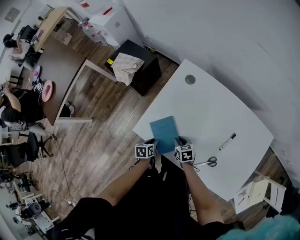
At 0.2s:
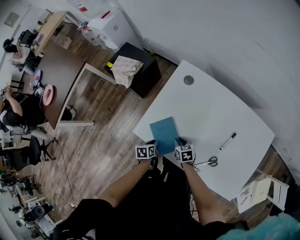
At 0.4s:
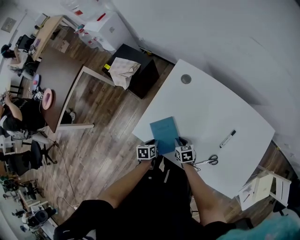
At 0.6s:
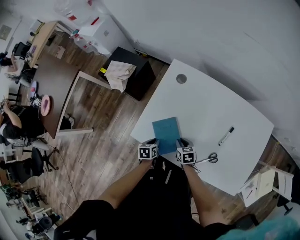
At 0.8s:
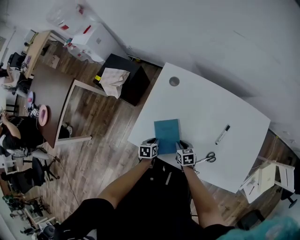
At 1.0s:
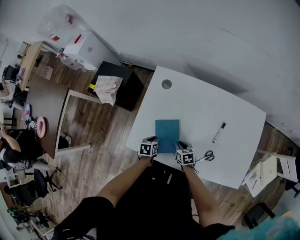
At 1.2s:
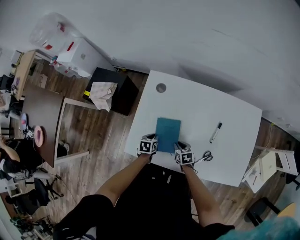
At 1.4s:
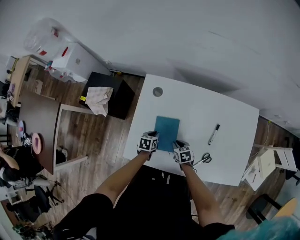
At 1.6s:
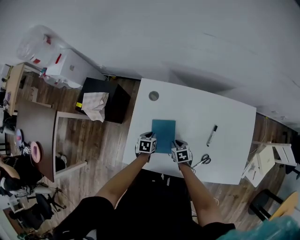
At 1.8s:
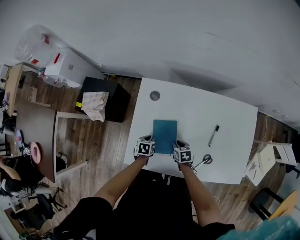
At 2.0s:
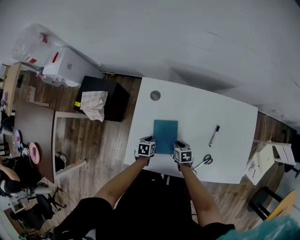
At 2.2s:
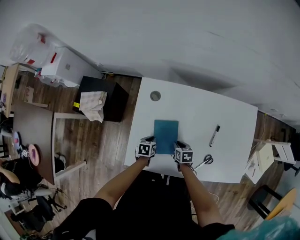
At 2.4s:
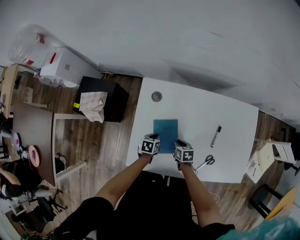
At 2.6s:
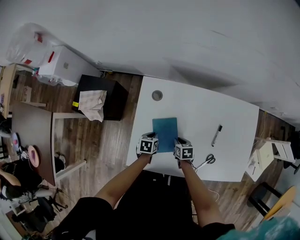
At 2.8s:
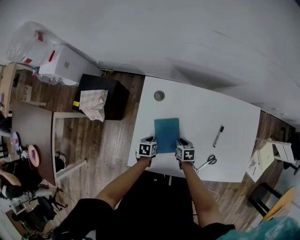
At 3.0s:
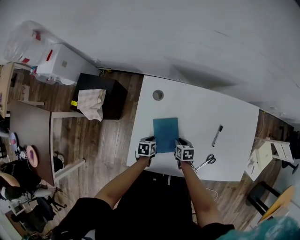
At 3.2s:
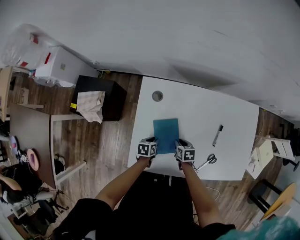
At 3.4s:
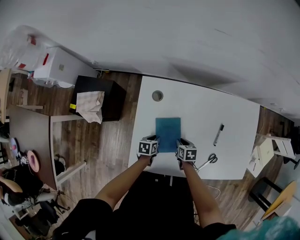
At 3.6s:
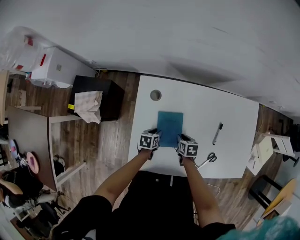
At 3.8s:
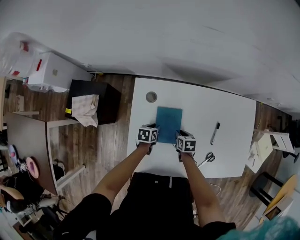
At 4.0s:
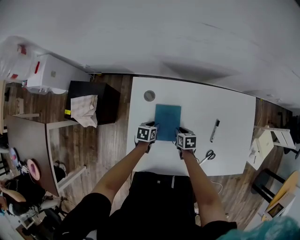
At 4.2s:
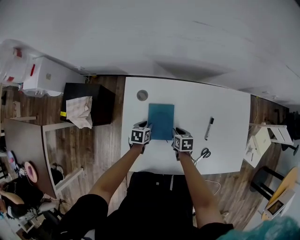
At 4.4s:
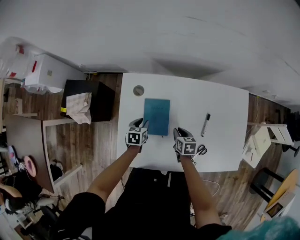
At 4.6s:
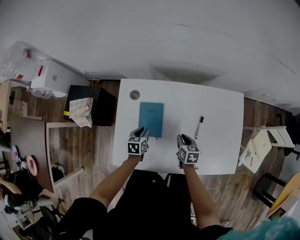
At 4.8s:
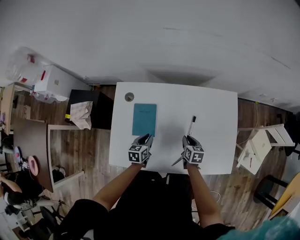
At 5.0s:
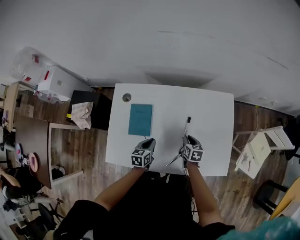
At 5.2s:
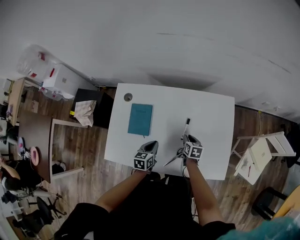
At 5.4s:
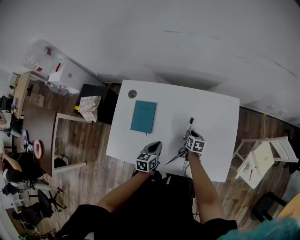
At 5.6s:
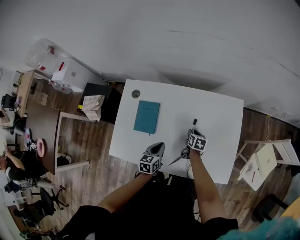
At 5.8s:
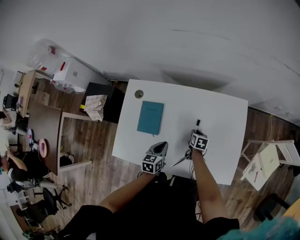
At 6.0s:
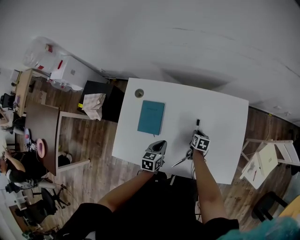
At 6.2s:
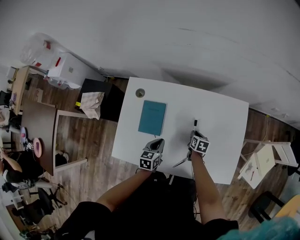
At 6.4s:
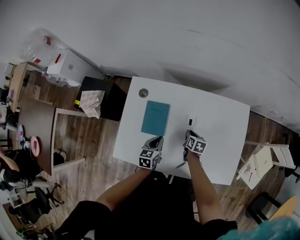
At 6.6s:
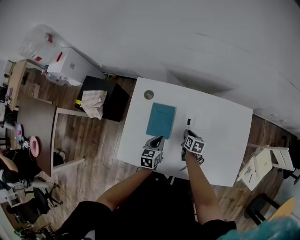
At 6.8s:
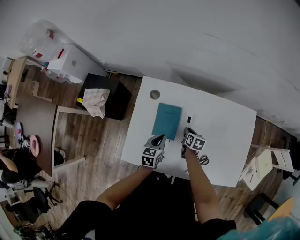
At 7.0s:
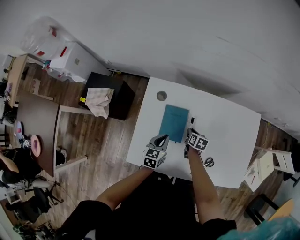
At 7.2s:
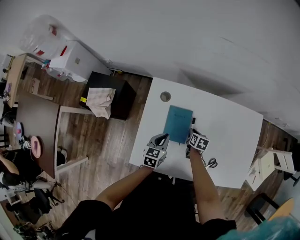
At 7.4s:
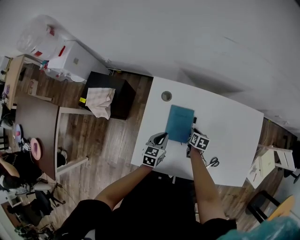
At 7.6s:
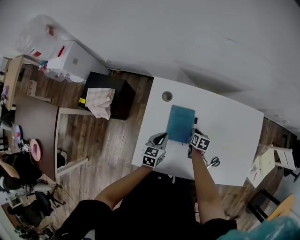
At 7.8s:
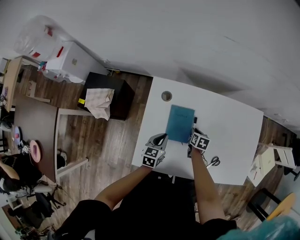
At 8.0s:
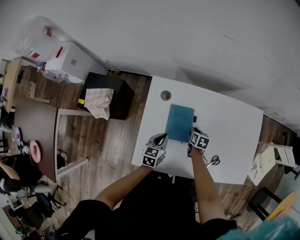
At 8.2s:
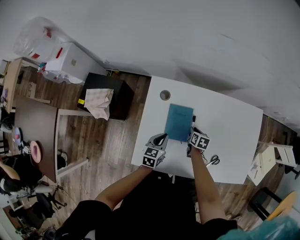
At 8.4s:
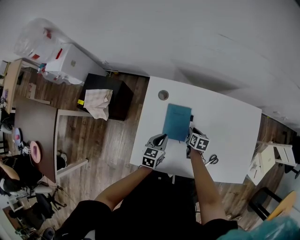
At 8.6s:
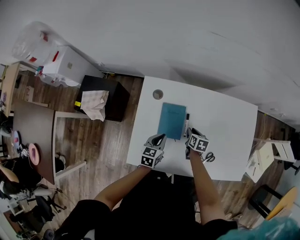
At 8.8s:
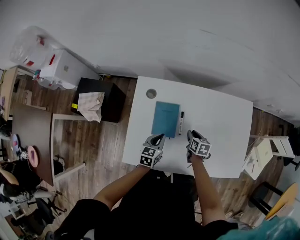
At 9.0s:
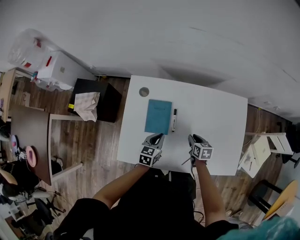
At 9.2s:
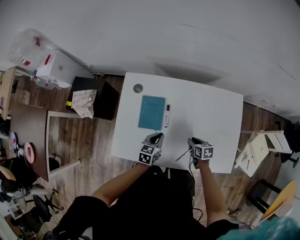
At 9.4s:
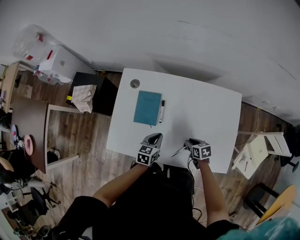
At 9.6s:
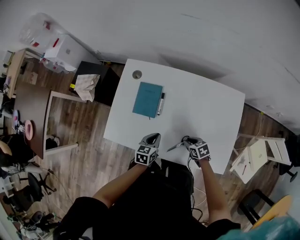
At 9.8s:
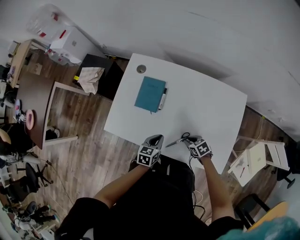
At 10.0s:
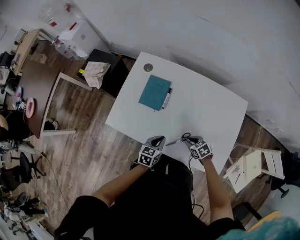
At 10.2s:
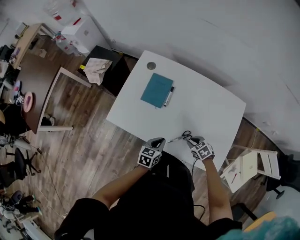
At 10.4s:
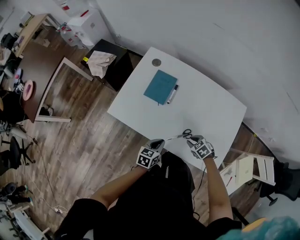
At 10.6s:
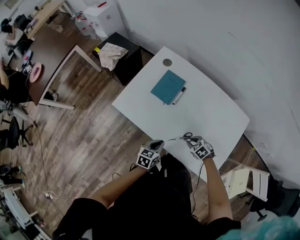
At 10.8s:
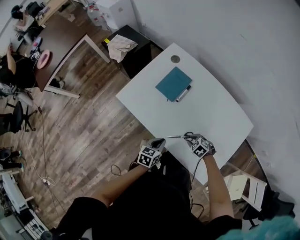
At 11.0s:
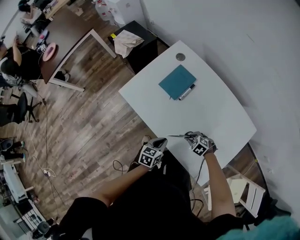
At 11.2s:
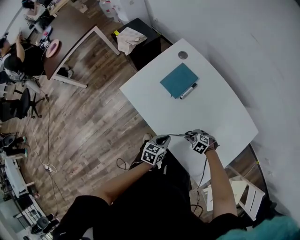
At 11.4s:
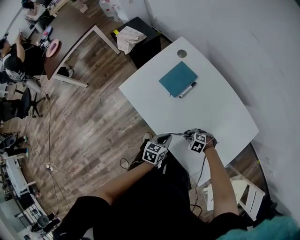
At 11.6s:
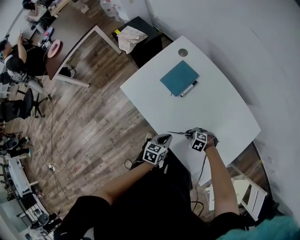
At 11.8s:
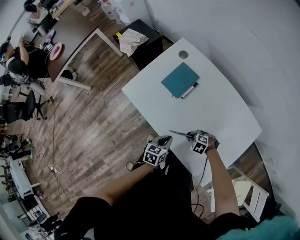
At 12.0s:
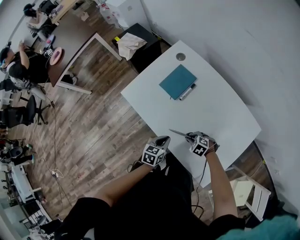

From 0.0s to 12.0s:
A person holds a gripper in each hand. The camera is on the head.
From 0.0s to 1.6s: The left gripper moves forward and to the right, roughly 20 cm, and turns by approximately 30 degrees; the right gripper travels to the right and forward by approximately 10 cm, and changes its angle by about 20 degrees.
From 1.6s to 3.0s: There are only small adjustments of the grippers.
From 3.0s to 4.4s: The right gripper moves to the right, some 5 cm. Meanwhile the left gripper travels forward by some 10 cm.
From 4.4s to 6.0s: The right gripper travels to the right by approximately 20 cm. Meanwhile the left gripper heads to the right, backward and upward, covering some 25 cm, and closes up.
From 6.0s to 7.6s: Both grippers move to the left, approximately 20 cm.
From 7.6s to 9.0s: The left gripper is displaced to the right by some 10 cm. The right gripper travels to the right, backward and upward by approximately 15 cm.
From 9.0s to 10.4s: The left gripper ends up approximately 25 cm from where it was; the right gripper moves about 15 cm, and rolls counterclockwise, seen from behind, by roughly 60 degrees.
From 10.4s to 12.0s: The right gripper rotates approximately 40 degrees.

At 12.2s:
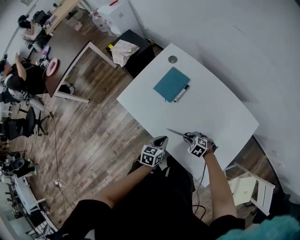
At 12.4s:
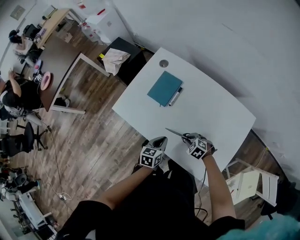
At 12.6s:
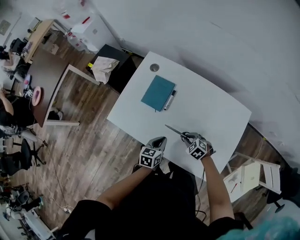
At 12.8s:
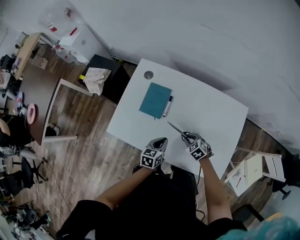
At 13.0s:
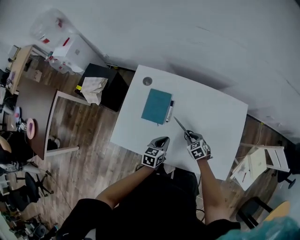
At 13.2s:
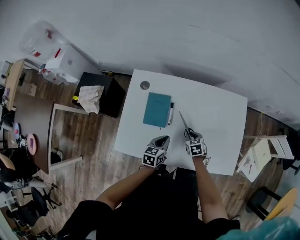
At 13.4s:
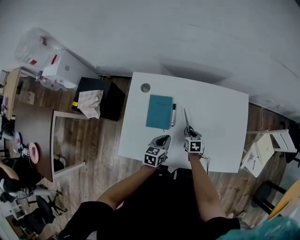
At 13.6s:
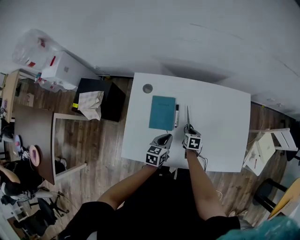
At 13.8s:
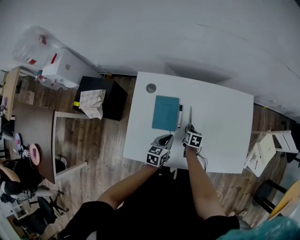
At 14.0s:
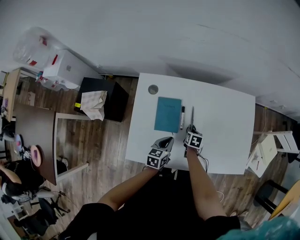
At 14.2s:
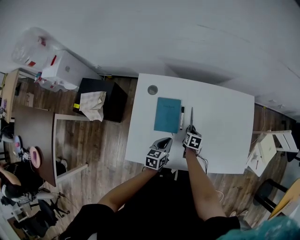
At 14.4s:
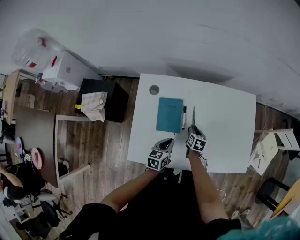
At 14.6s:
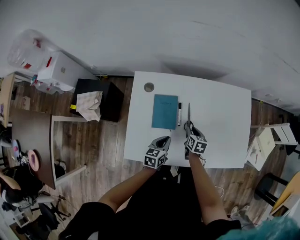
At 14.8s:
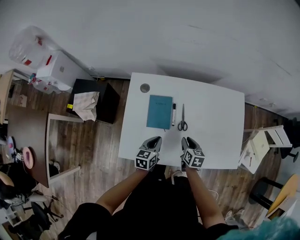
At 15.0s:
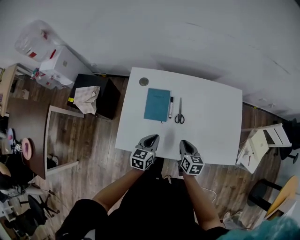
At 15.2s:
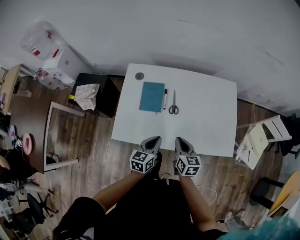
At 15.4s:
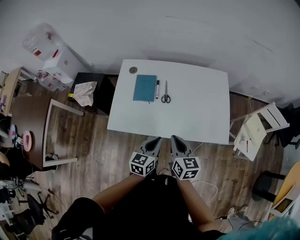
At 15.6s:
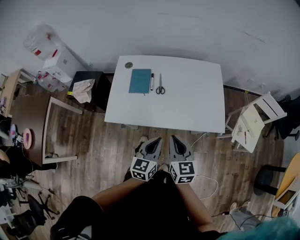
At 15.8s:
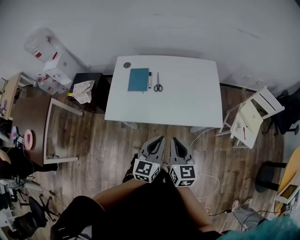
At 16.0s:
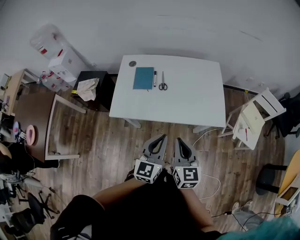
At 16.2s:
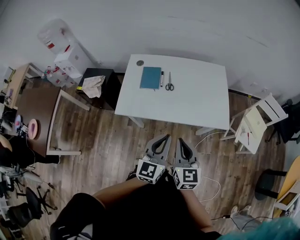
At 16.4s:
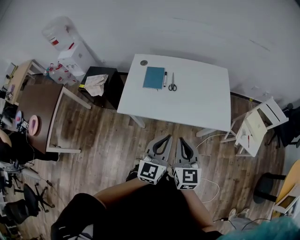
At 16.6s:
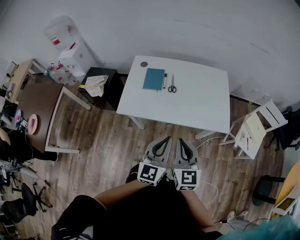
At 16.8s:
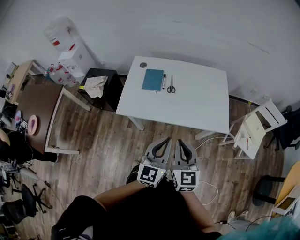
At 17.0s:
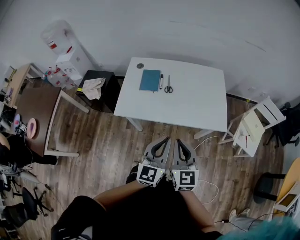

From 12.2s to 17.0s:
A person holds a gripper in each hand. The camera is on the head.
From 12.2s to 13.8s: The left gripper shifts by approximately 20 cm, and changes its angle by roughly 30 degrees. Meanwhile the right gripper shifts by approximately 20 cm, and twists roughly 100 degrees clockwise, seen from behind.
From 13.8s to 15.4s: The right gripper heads upward and backward, covering some 40 cm, and points its fingers roughly 40 degrees further upward; the left gripper goes roughly 30 cm backward, to the right and upward.
From 15.4s to 17.0s: The grippers both shift backward and upward by approximately 20 cm. The right gripper rotates approximately 20 degrees, while the left gripper swivels approximately 30 degrees.

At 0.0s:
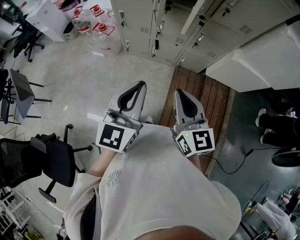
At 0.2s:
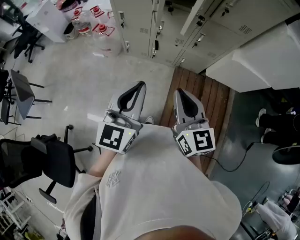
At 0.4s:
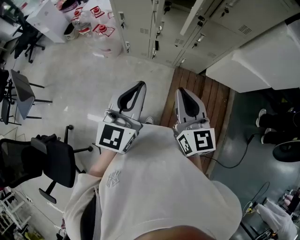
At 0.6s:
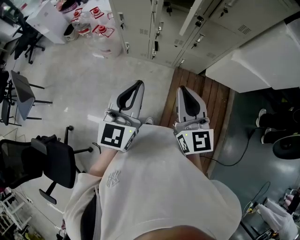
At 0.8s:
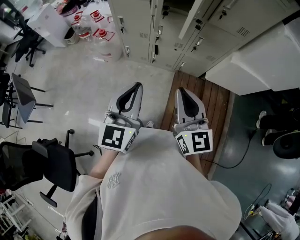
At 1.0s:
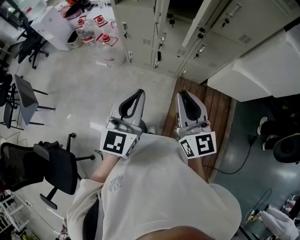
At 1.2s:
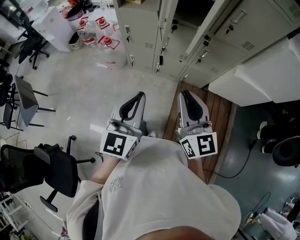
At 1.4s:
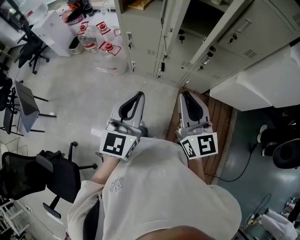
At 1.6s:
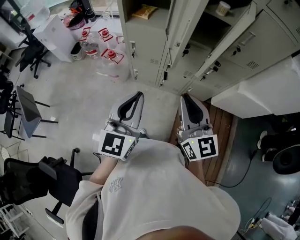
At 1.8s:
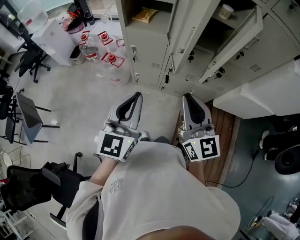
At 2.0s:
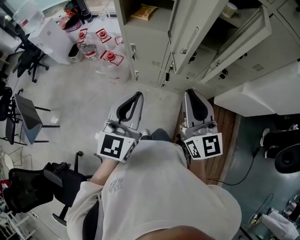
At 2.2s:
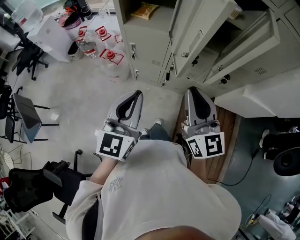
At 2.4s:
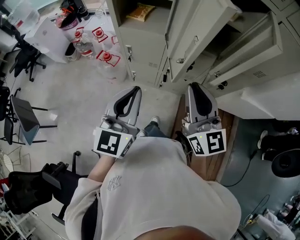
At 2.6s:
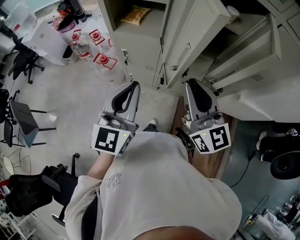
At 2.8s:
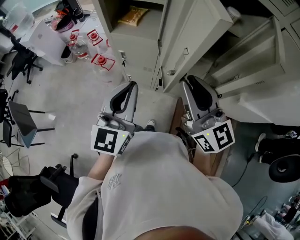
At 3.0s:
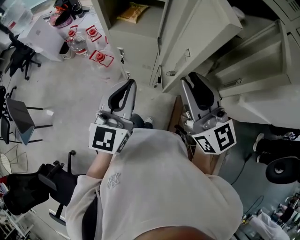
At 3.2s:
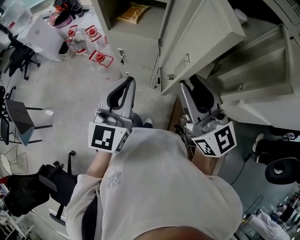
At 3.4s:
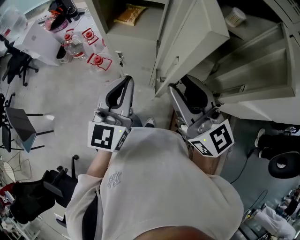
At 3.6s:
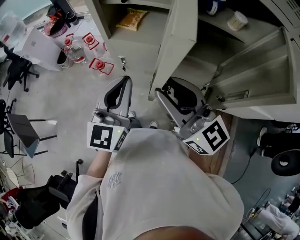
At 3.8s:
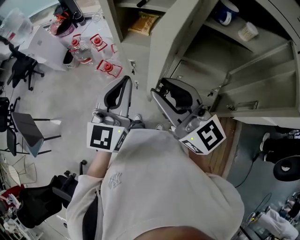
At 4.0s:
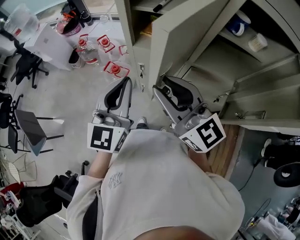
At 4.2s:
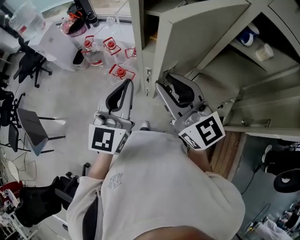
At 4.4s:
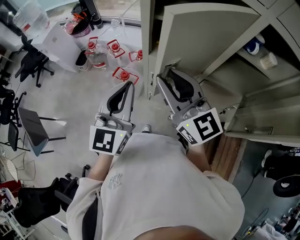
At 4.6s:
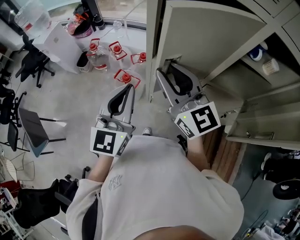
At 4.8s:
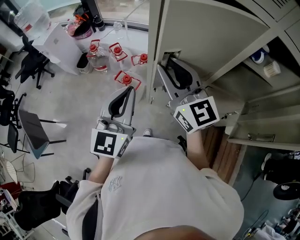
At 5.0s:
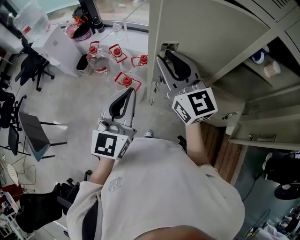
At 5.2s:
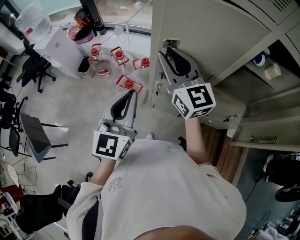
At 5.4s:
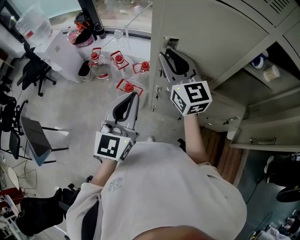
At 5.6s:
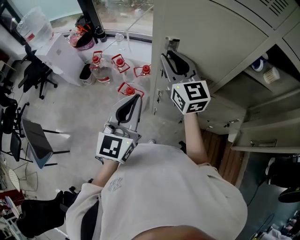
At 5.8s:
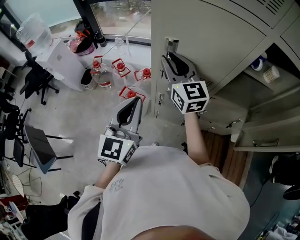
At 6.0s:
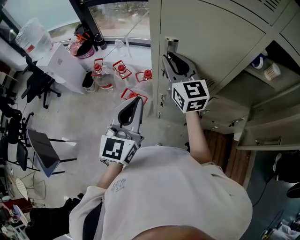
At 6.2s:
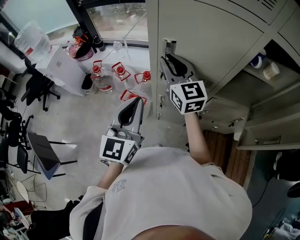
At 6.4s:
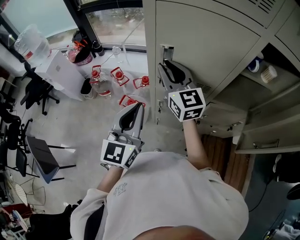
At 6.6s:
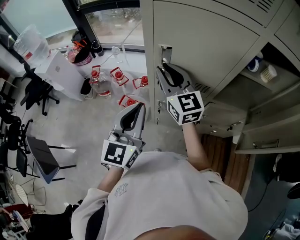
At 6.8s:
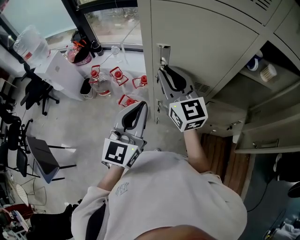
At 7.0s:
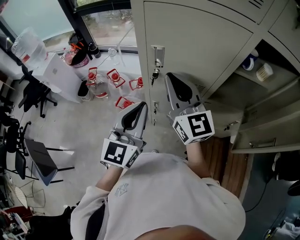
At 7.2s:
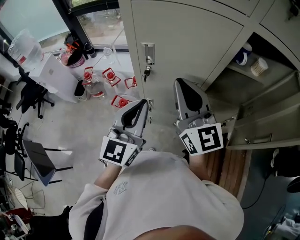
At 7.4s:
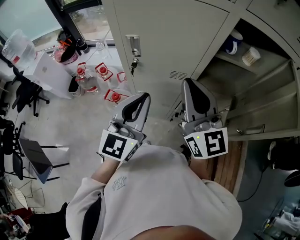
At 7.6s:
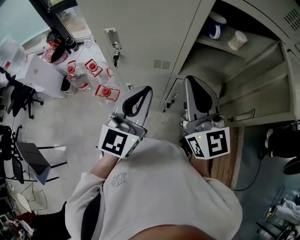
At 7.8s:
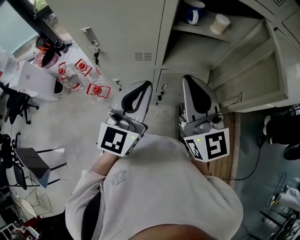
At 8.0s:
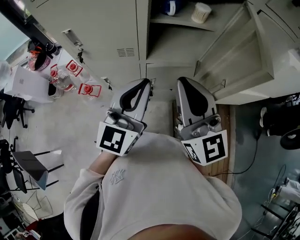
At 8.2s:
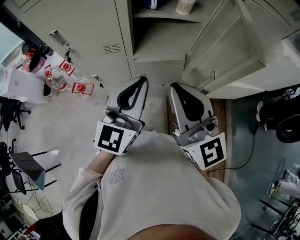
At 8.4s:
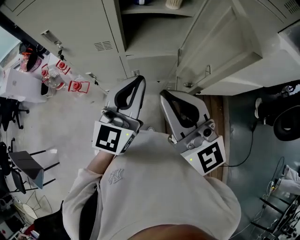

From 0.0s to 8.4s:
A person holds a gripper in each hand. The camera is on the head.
From 0.0s to 1.4s: The right gripper goes roughly 10 cm forward. The left gripper moves forward and to the left, some 10 cm.
From 1.4s to 2.8s: Both grippers move forward, about 20 cm.
From 2.8s to 4.2s: The grippers both shift to the left and forward by about 20 cm.
From 4.2s to 5.6s: The left gripper shifts by about 5 cm, while the right gripper is displaced forward by about 20 cm.
From 5.6s to 7.0s: The left gripper moves about 5 cm; the right gripper heads backward, covering roughly 5 cm.
From 7.0s to 8.4s: The right gripper goes some 35 cm to the right and backward. The left gripper heads to the right, covering roughly 30 cm.
